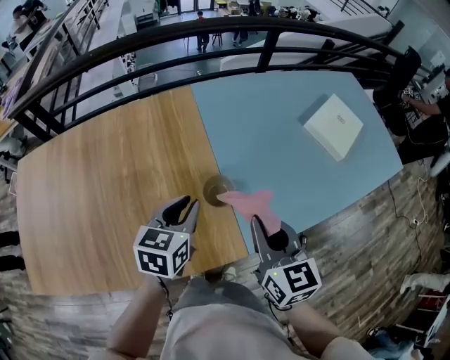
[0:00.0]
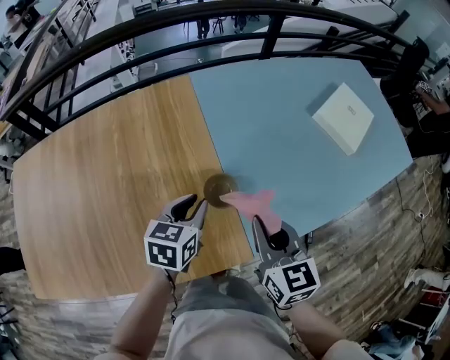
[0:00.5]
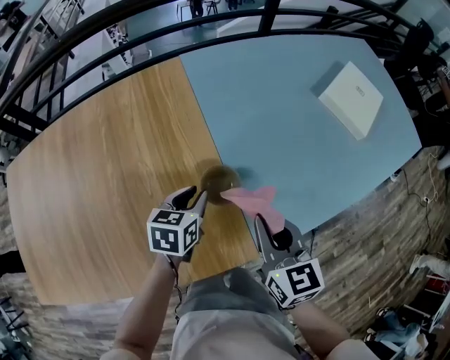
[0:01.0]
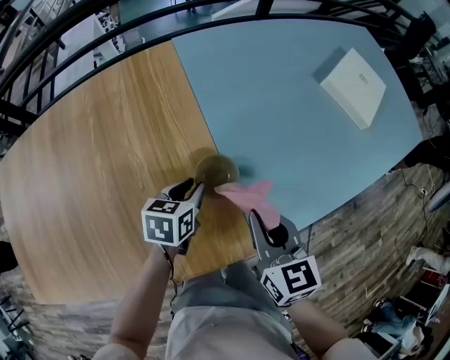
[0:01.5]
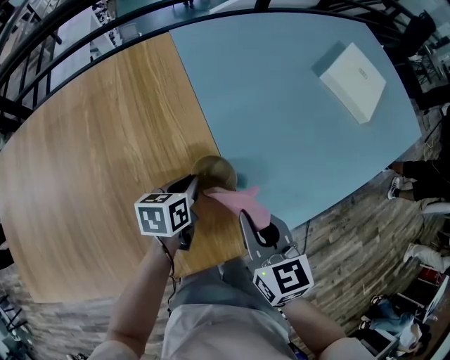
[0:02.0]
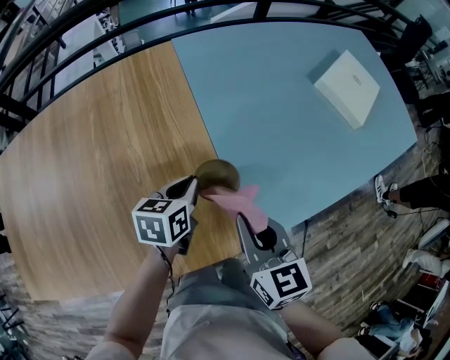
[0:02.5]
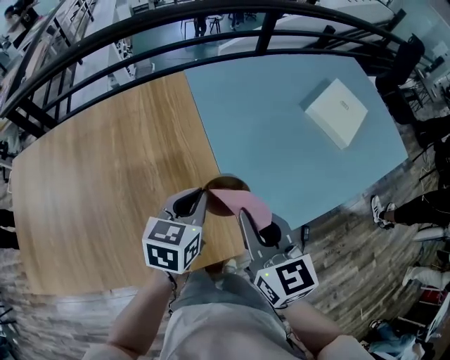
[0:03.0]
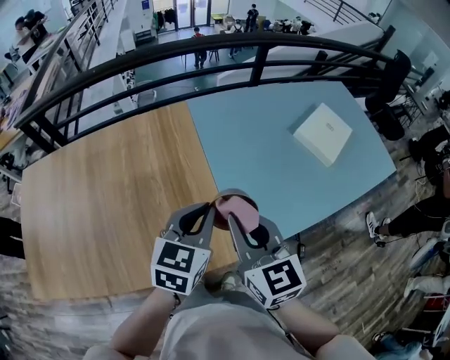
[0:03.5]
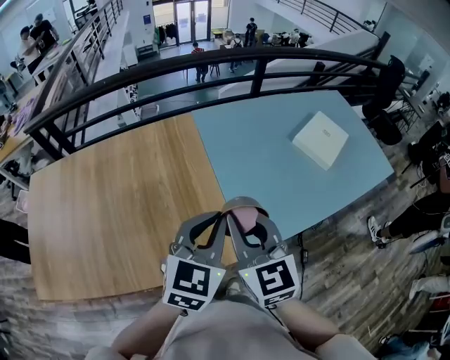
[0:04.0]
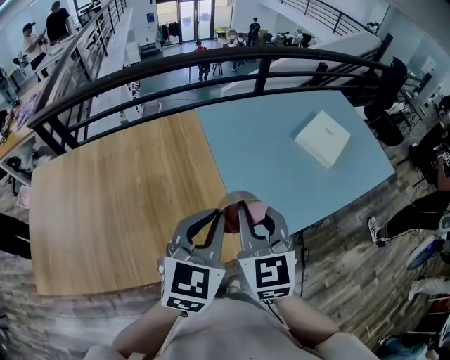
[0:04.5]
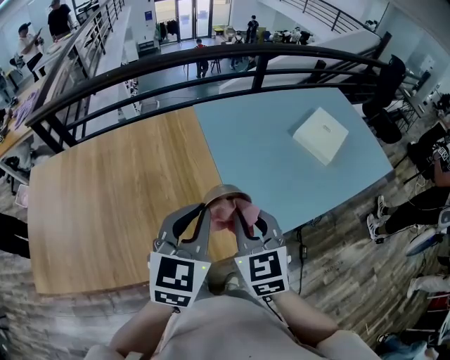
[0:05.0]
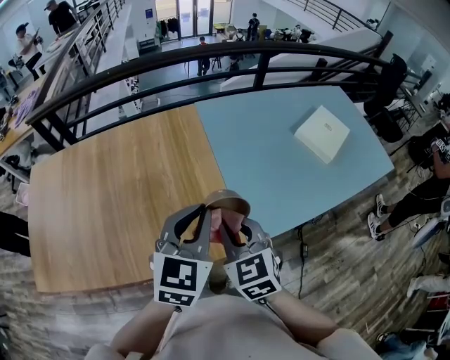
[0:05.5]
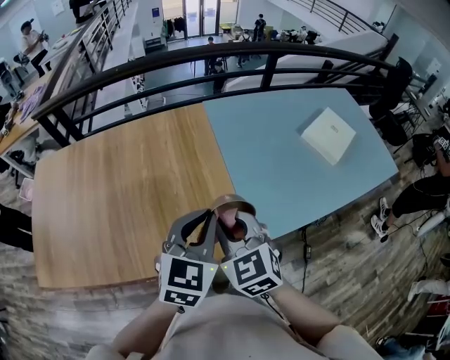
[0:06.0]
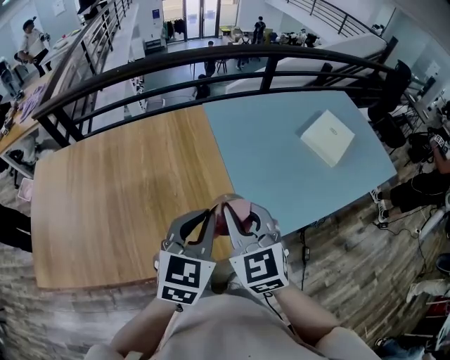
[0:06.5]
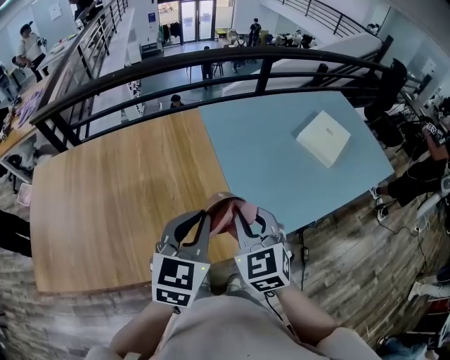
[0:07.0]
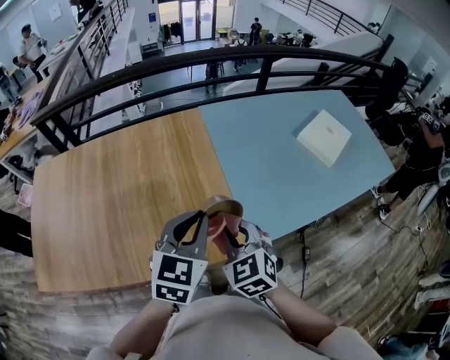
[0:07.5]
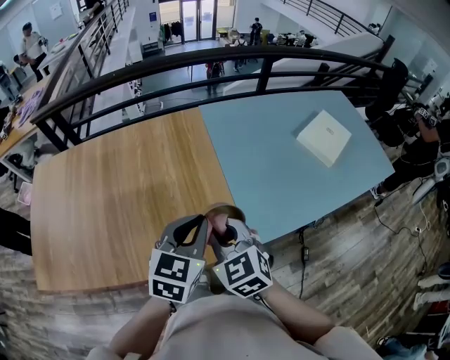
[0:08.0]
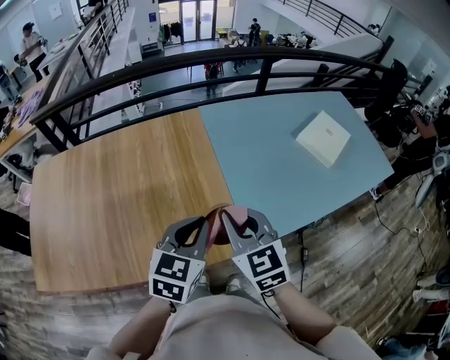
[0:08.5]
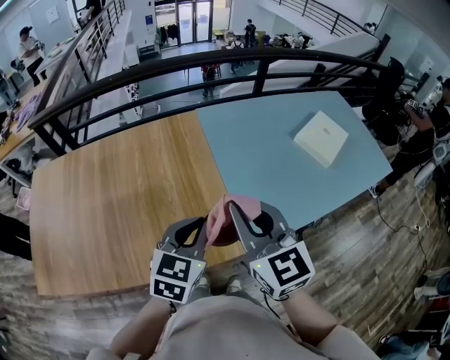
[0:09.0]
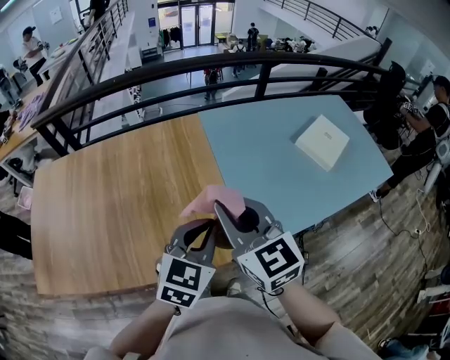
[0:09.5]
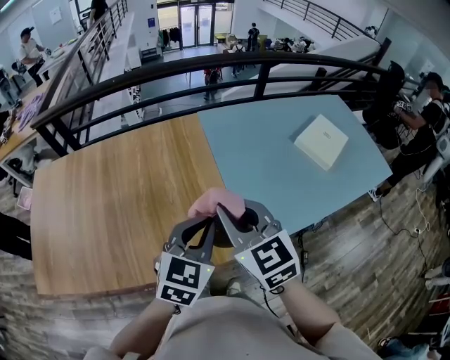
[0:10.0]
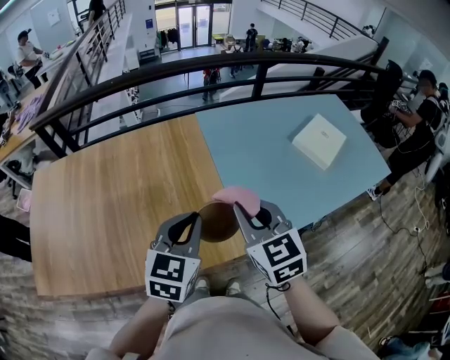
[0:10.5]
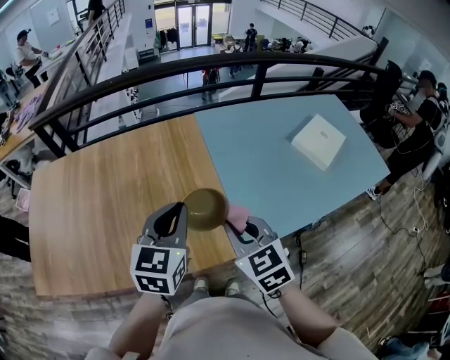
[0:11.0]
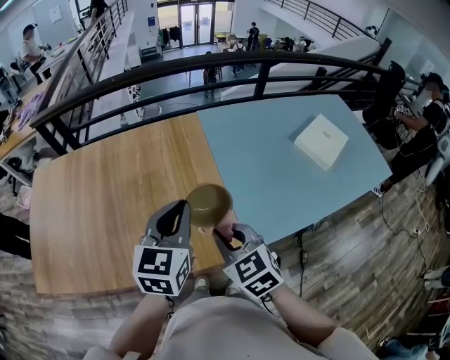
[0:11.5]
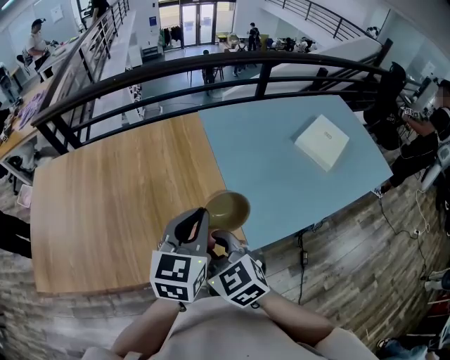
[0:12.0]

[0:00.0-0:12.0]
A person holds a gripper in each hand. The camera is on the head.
0:00.0 to 0:02.0: The two grippers go some 25 cm downward. The left gripper rotates roughly 20 degrees.
0:02.0 to 0:04.0: The left gripper goes roughly 40 cm upward and backward, and twists some 40 degrees clockwise, seen from behind. The right gripper goes roughly 30 cm upward, and changes its angle by some 30 degrees.
0:04.0 to 0:06.0: The right gripper moves to the left and downward, about 10 cm, and swivels approximately 20 degrees; the left gripper goes approximately 5 cm to the left.
0:08.0 to 0:10.0: The right gripper heads upward, covering approximately 10 cm.
0:10.0 to 0:12.0: The right gripper shifts about 10 cm downward and to the left.

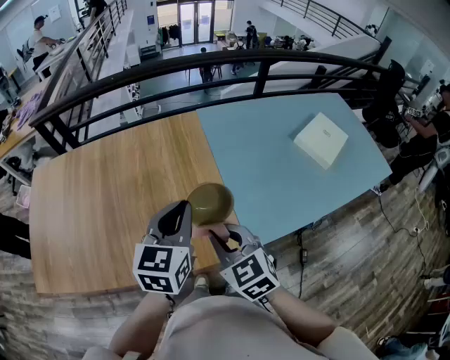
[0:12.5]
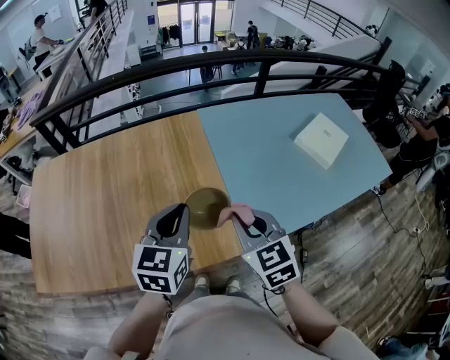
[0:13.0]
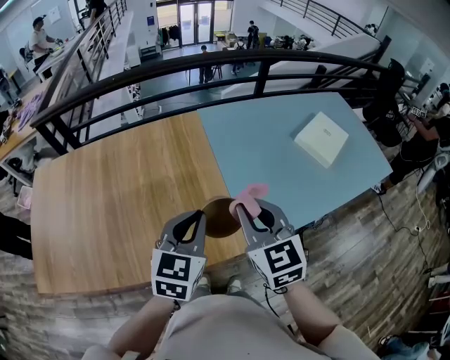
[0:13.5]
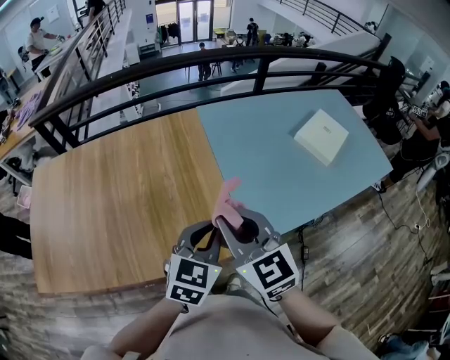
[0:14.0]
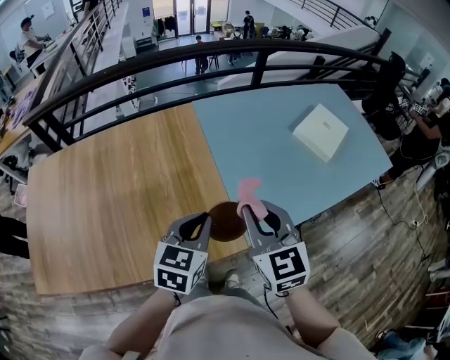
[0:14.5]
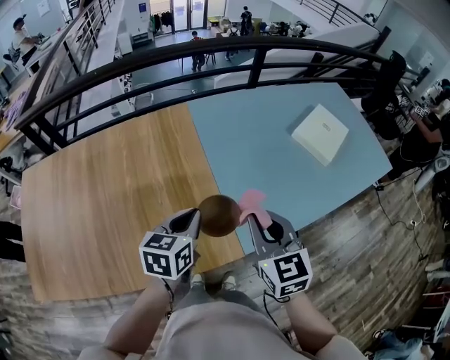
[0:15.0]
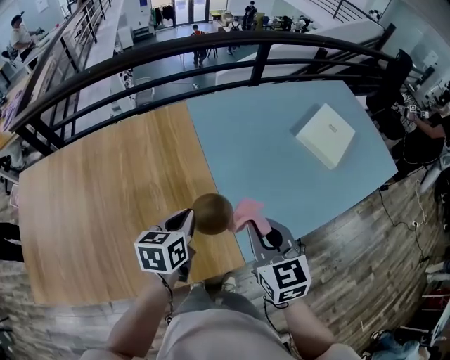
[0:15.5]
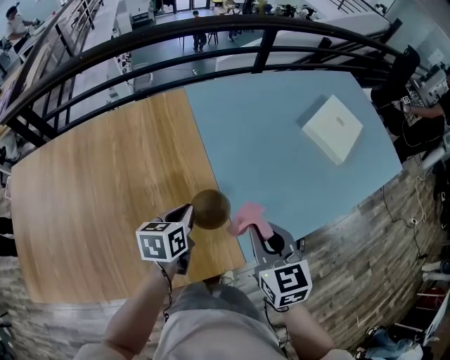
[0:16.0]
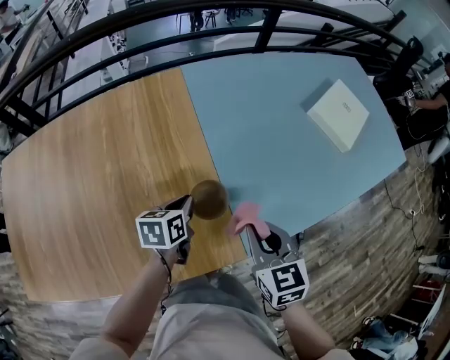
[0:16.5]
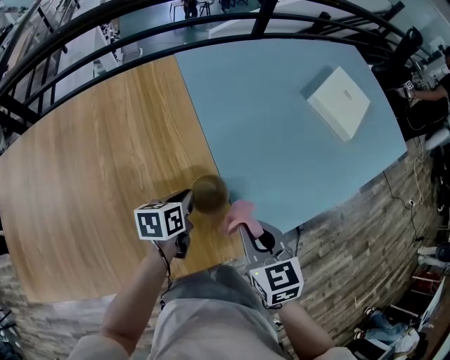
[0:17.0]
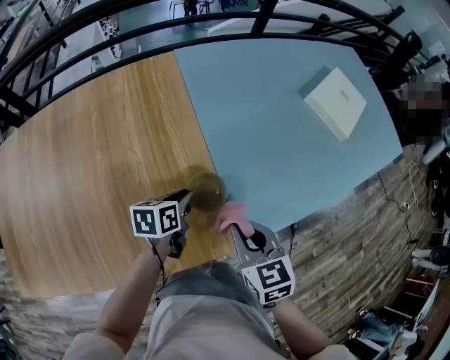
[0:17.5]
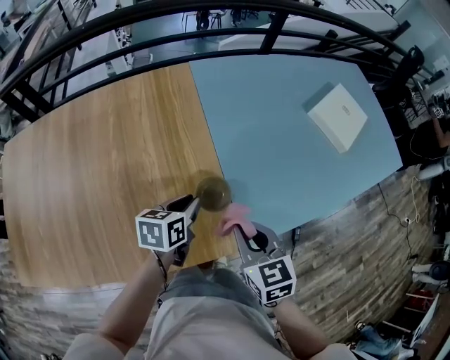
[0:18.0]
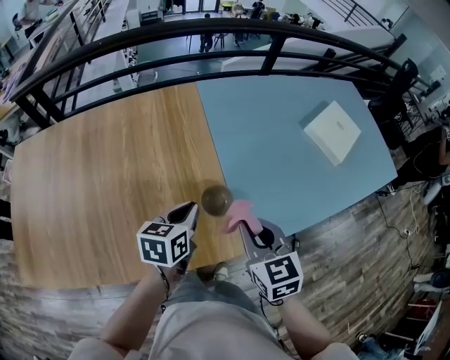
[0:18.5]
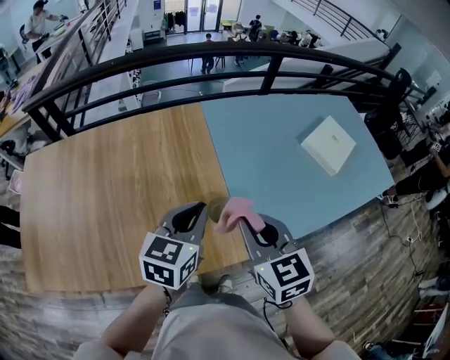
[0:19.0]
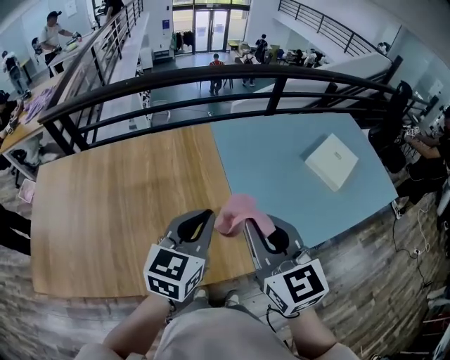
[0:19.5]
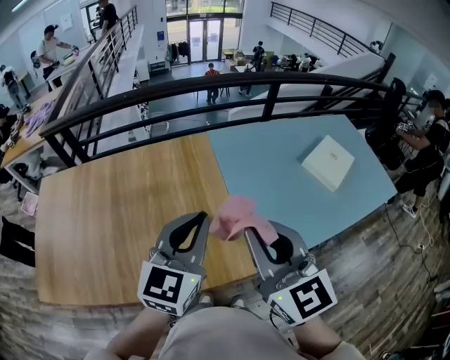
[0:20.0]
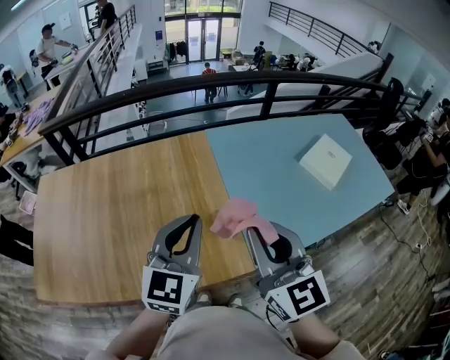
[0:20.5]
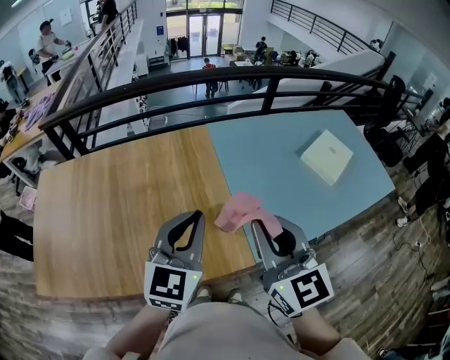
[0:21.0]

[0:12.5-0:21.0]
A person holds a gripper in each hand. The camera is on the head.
0:12.5 to 0:14.5: The right gripper swings left and right, roughly 10 cm each way, with 2 reversals, and swivels about 20 degrees. The left gripper moves downward and to the right, about 10 cm.
0:14.5 to 0:16.5: The two grippers go roughly 25 cm downward and forward. The right gripper changes its angle by approximately 20 degrees, while the left gripper changes its angle by some 30 degrees.
0:16.5 to 0:19.0: The right gripper moves upward, approximately 15 cm. Meanwhile the left gripper moves upward and backward, some 30 cm, and rotates about 30 degrees.
0:19.0 to 0:21.0: The grippers both shift upward and backward by approximately 15 cm. The right gripper turns by approximately 20 degrees. The left gripper turns by roughly 20 degrees.

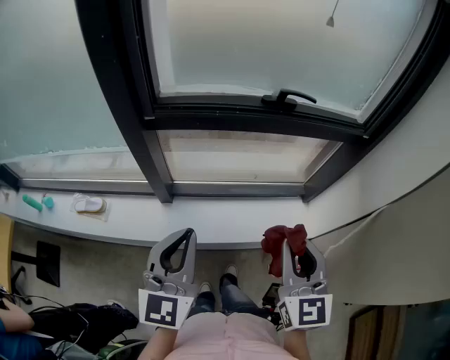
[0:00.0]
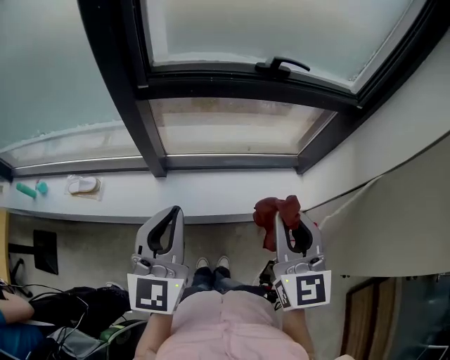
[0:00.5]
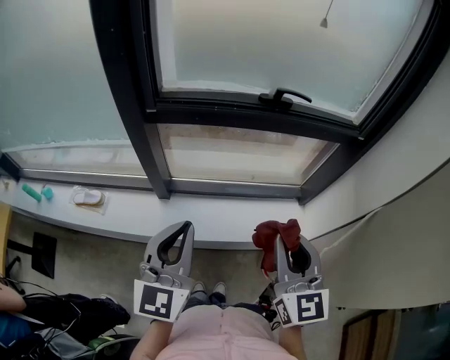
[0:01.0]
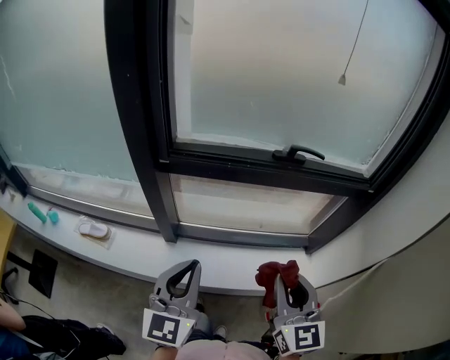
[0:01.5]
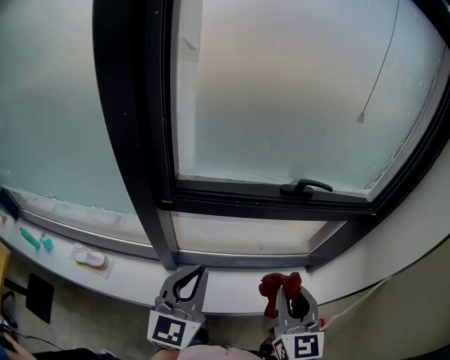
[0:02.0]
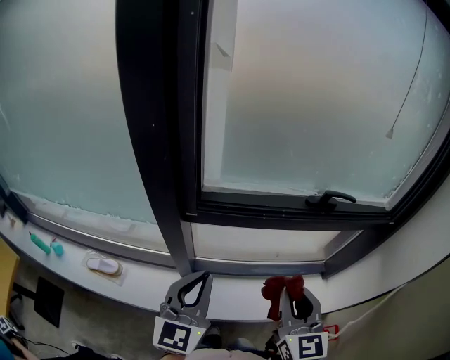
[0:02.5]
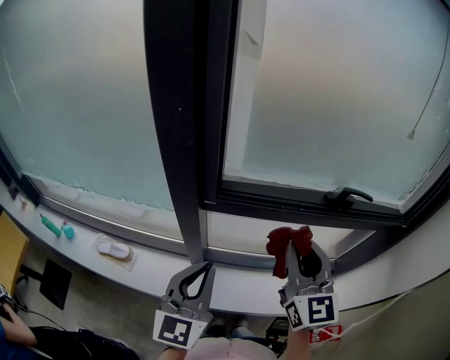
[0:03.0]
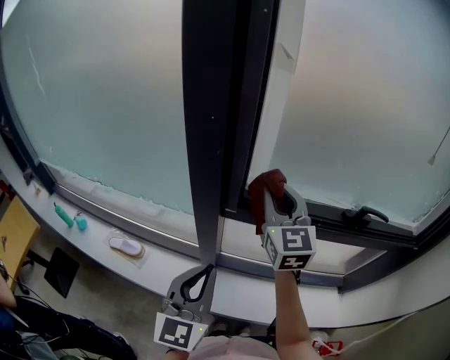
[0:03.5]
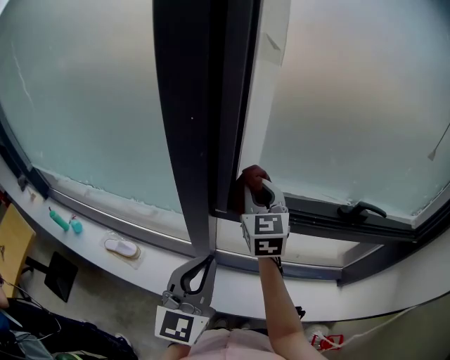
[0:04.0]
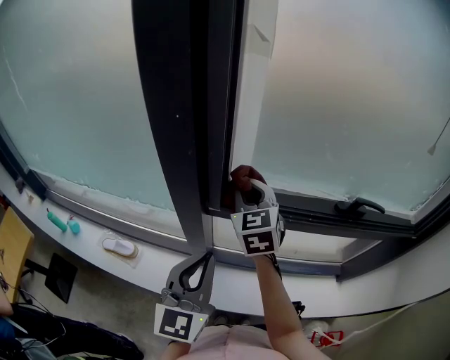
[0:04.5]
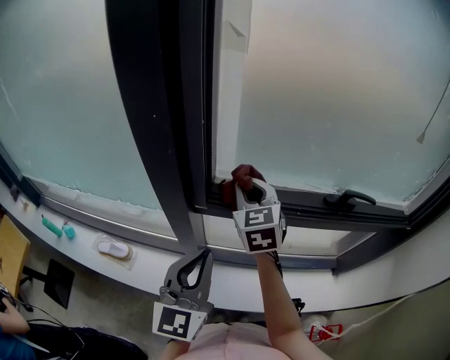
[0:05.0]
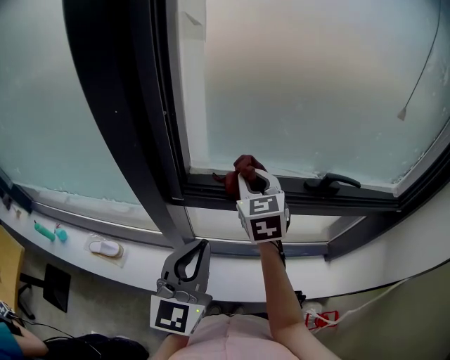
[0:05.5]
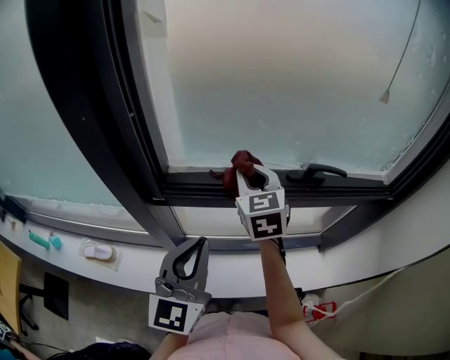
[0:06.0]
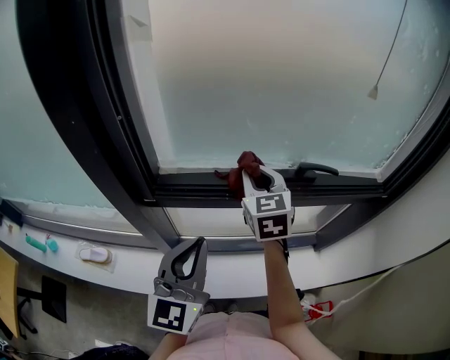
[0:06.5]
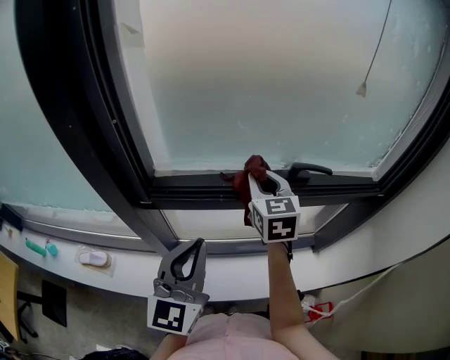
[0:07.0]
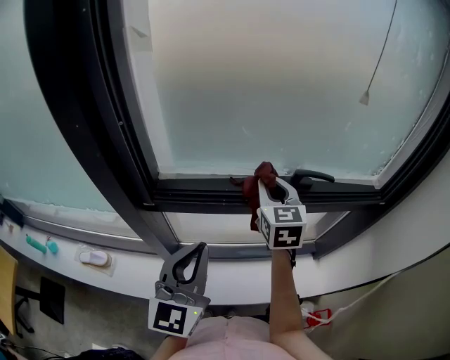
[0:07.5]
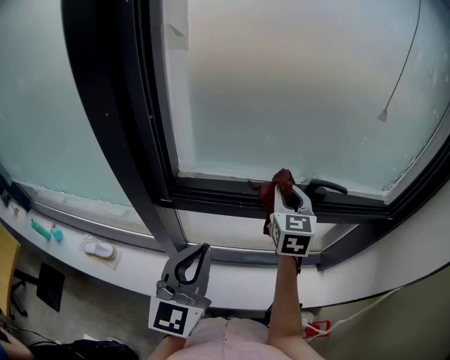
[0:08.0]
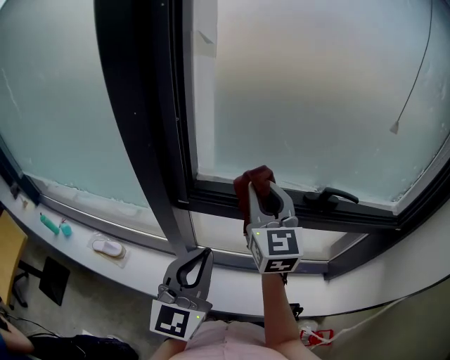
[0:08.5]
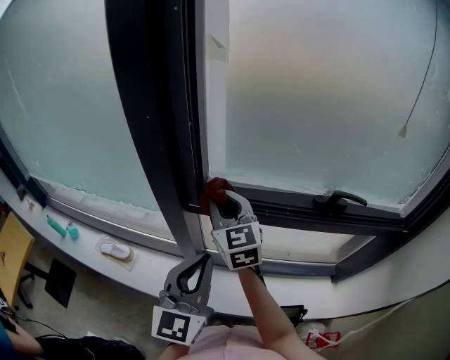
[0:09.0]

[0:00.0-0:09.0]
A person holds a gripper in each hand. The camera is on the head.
0:00.0 to 0:02.0: The left gripper heads forward, covering some 15 cm. The right gripper moves forward and to the left, roughly 15 cm.
0:02.0 to 0:04.5: The left gripper travels to the left and forward by roughly 10 cm. The right gripper goes about 40 cm forward and to the left, and turns by roughly 30 degrees.
0:04.5 to 0:07.0: The left gripper moves to the right, about 15 cm. The right gripper travels to the right by some 25 cm.
0:07.0 to 0:09.0: The right gripper travels to the left by roughly 25 cm, and rotates about 30 degrees. Meanwhile the left gripper heads to the left, covering some 10 cm.
